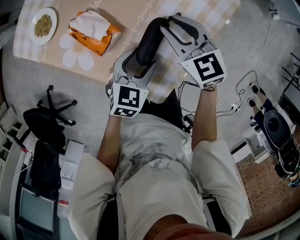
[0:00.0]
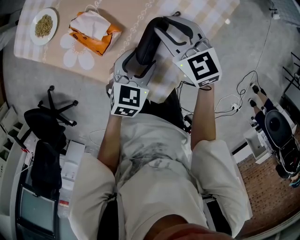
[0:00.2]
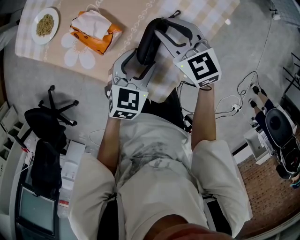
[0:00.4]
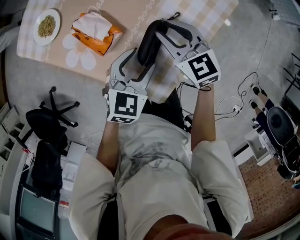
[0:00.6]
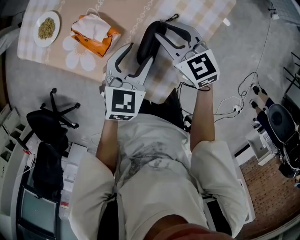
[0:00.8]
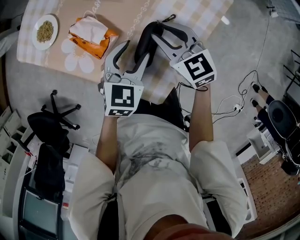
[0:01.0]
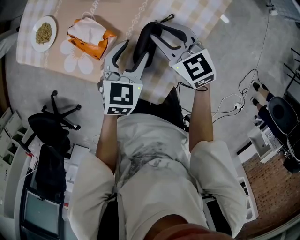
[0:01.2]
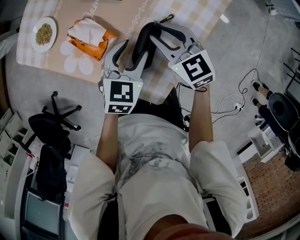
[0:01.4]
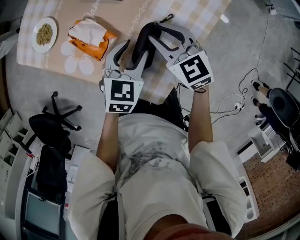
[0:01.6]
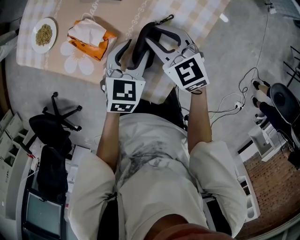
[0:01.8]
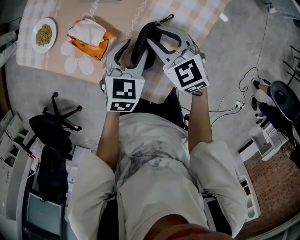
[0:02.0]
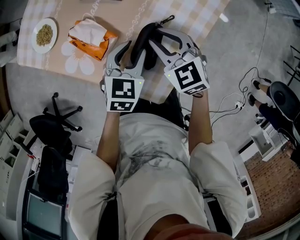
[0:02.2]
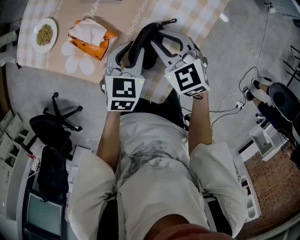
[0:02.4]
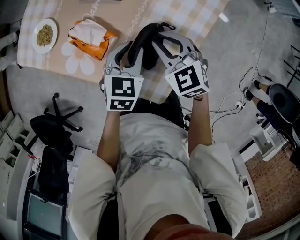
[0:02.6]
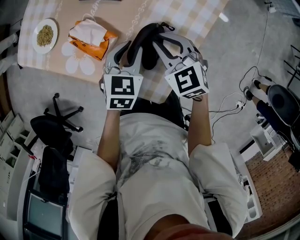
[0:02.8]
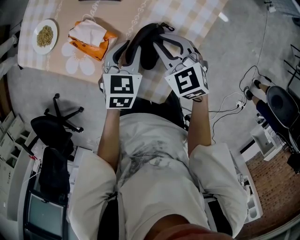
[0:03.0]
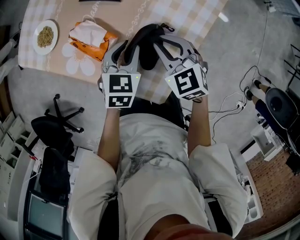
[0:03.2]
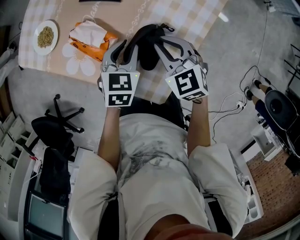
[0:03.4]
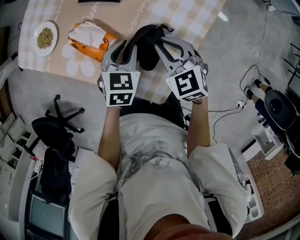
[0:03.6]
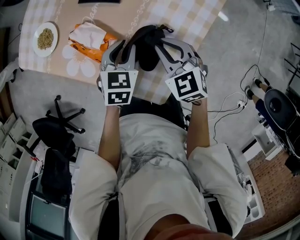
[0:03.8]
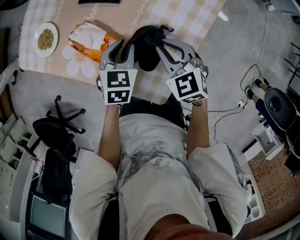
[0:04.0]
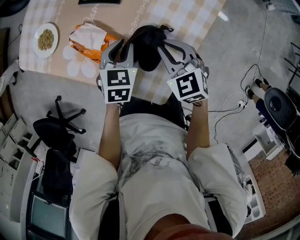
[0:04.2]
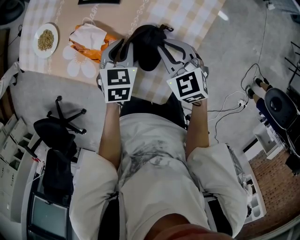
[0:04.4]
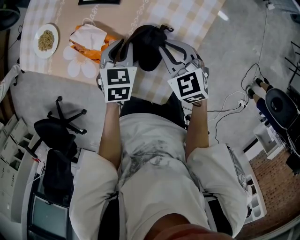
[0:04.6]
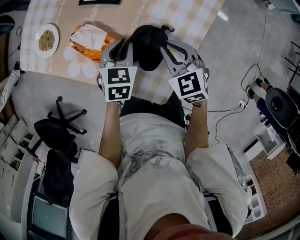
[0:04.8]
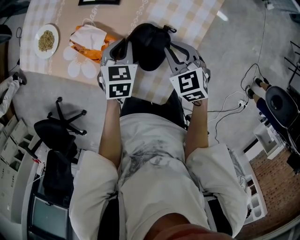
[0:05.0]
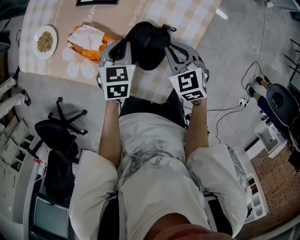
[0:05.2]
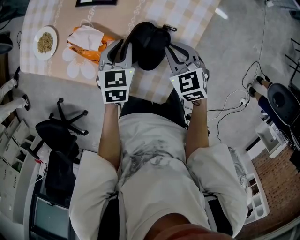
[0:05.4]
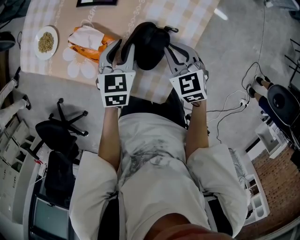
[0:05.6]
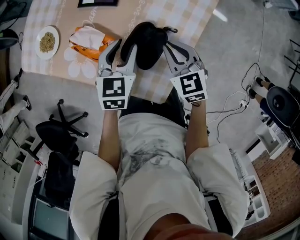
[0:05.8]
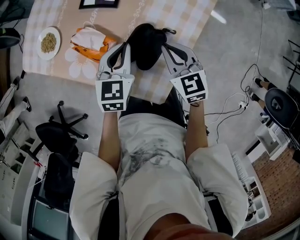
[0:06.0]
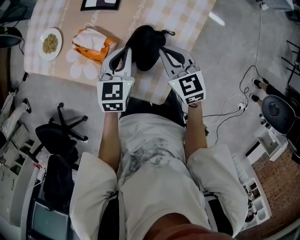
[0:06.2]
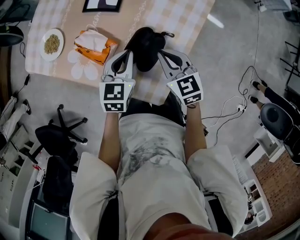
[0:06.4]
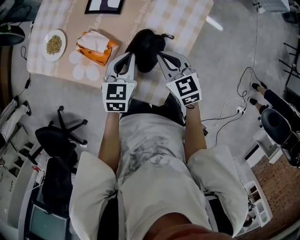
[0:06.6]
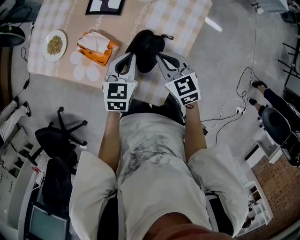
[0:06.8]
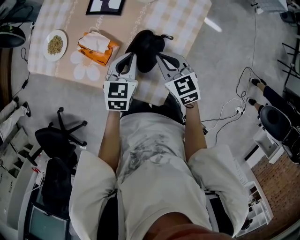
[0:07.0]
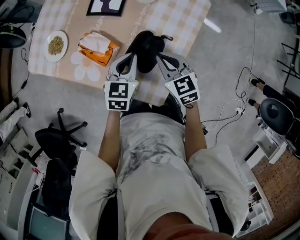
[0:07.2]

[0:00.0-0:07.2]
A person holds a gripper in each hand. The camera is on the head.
0:00.0 to 0:01.4: The left gripper travels forward by about 5 cm.
0:01.4 to 0:02.8: The left gripper closes.
0:02.8 to 0:04.4: The grippers stay close to where they were, moving slightly.
0:04.4 to 0:05.8: The left gripper shifts by approximately 5 cm.
0:05.8 to 0:07.2: The left gripper closes up.

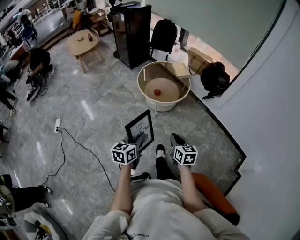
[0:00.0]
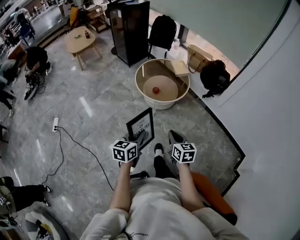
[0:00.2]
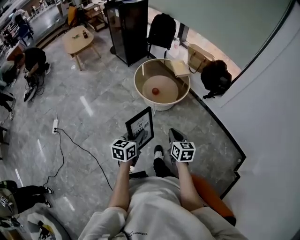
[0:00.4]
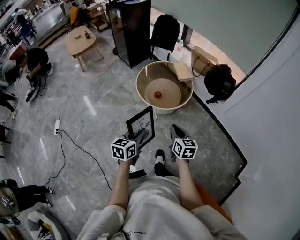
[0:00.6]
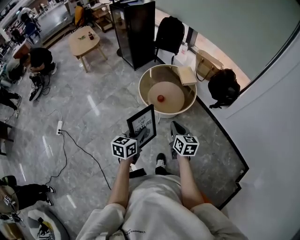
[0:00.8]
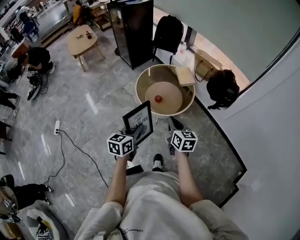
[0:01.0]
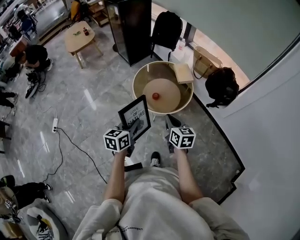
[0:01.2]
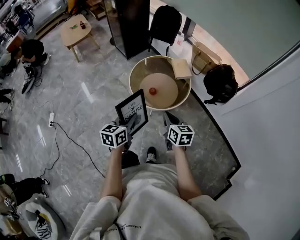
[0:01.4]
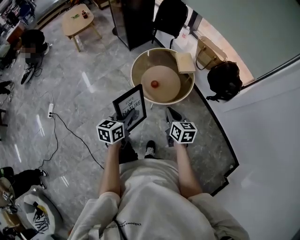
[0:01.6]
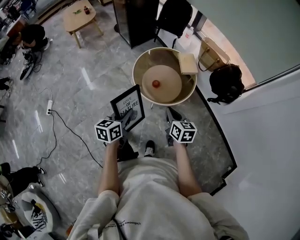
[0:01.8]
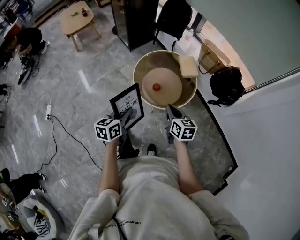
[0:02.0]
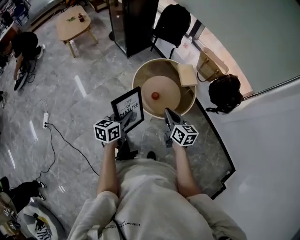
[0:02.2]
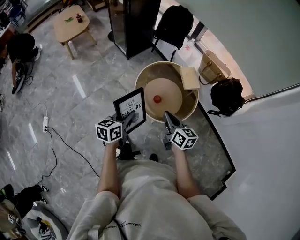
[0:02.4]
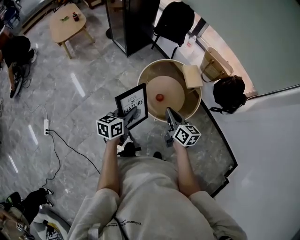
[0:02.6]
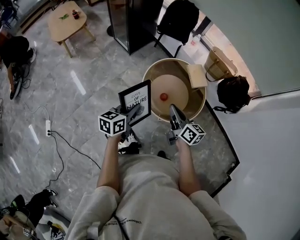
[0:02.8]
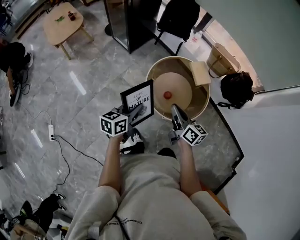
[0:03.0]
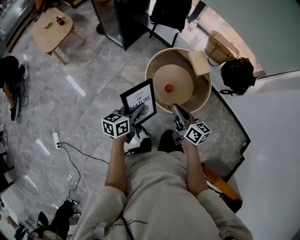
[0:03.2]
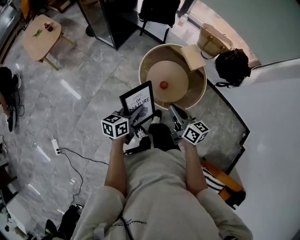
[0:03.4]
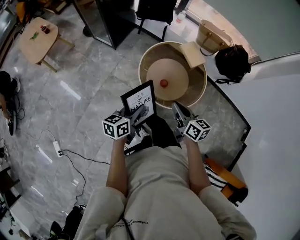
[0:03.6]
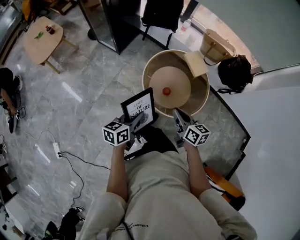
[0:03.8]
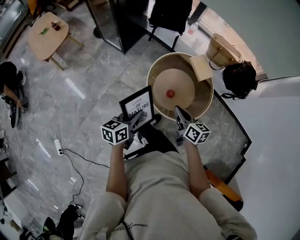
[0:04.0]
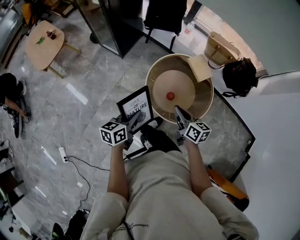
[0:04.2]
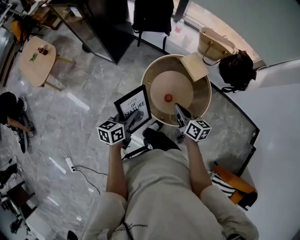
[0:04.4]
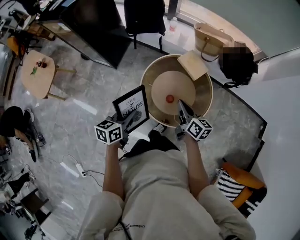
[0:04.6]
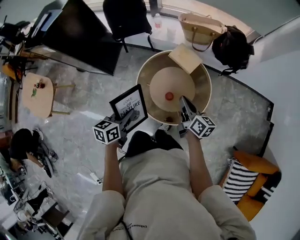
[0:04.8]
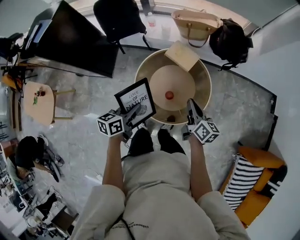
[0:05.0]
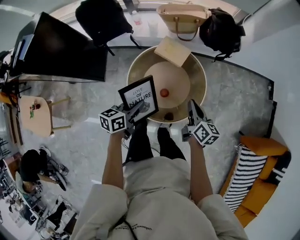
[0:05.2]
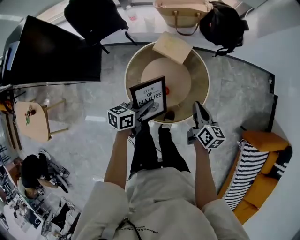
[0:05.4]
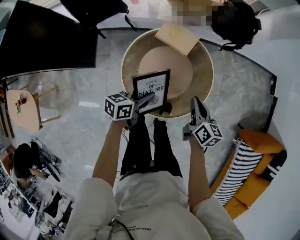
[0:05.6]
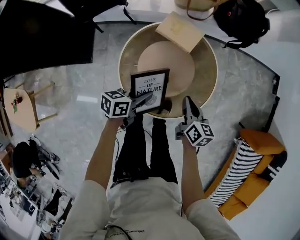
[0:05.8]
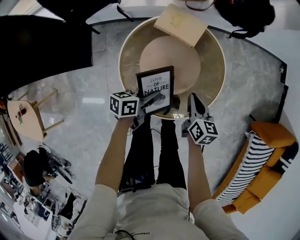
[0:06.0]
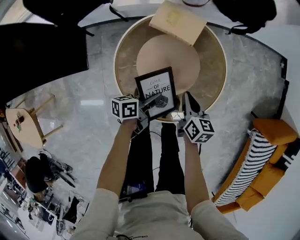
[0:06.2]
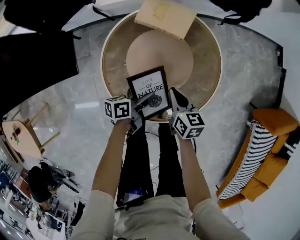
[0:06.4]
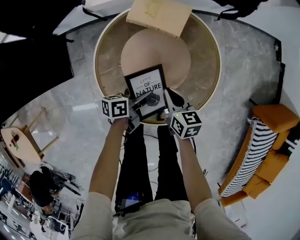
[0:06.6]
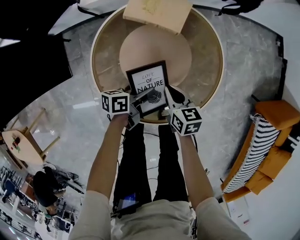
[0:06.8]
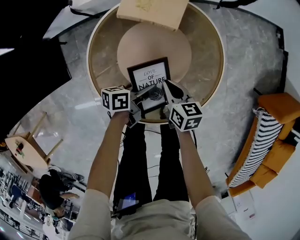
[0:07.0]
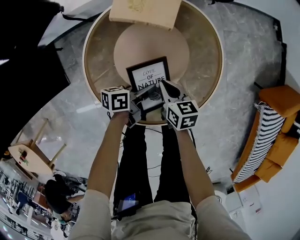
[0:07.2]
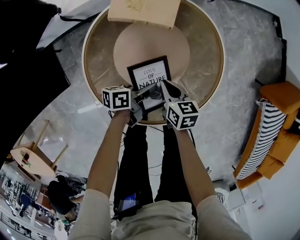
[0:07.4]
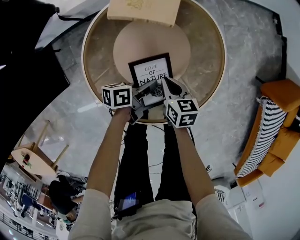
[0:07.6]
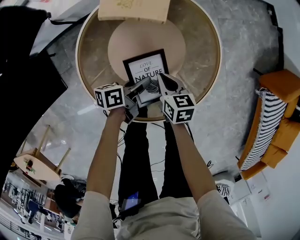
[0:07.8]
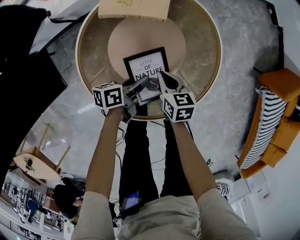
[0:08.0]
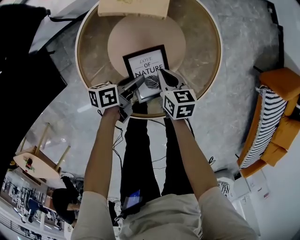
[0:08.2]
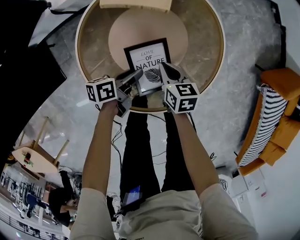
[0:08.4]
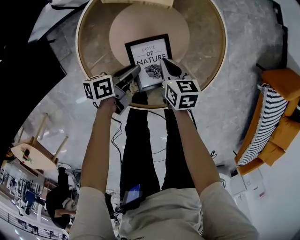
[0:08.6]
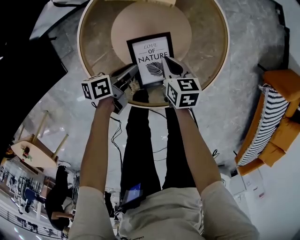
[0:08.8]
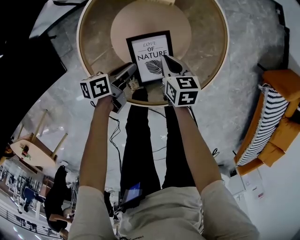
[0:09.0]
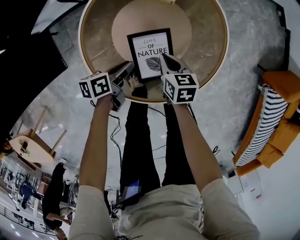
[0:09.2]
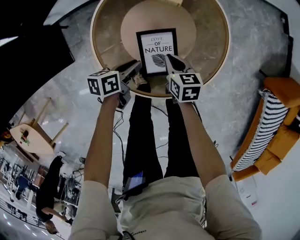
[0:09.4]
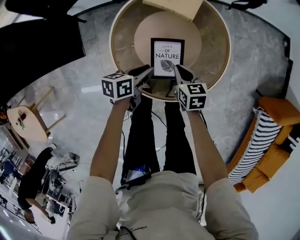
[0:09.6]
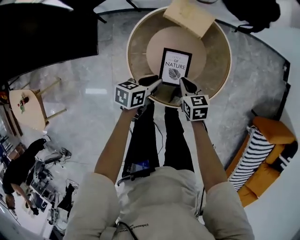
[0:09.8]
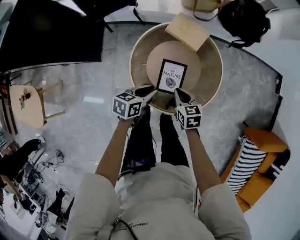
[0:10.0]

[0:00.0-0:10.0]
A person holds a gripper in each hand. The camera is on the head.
0:00.0 to 0:01.4: The two grippers go approximately 35 cm forward.
0:01.4 to 0:02.8: The two grippers go approximately 35 cm forward and to the left. The right gripper changes its angle by some 20 degrees.
0:02.8 to 0:04.2: The right gripper goes roughly 15 cm forward, downward and to the left. Meanwhile the left gripper moves forward, to the left and downward, approximately 15 cm.
0:04.2 to 0:05.8: The left gripper ends up approximately 35 cm from where it was, and rotates some 50 degrees. The right gripper shifts by some 30 cm, and swivels some 50 degrees.
0:05.8 to 0:07.2: Both grippers travel together downward, some 20 cm. The left gripper swivels about 20 degrees.
0:07.2 to 0:08.6: The left gripper moves to the left, roughly 5 cm.
0:08.6 to 0:10.0: The two grippers go about 25 cm upward. The left gripper swivels approximately 30 degrees. Meanwhile the right gripper swivels roughly 30 degrees.

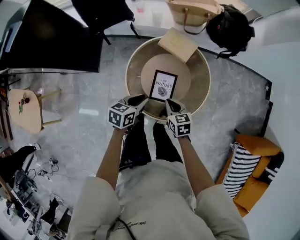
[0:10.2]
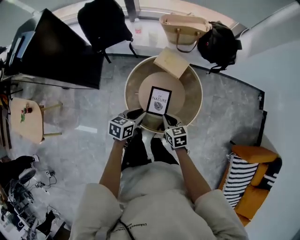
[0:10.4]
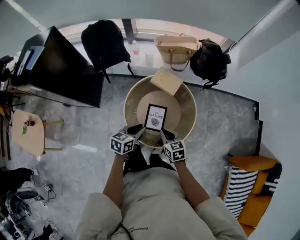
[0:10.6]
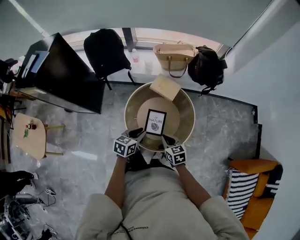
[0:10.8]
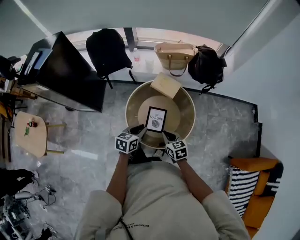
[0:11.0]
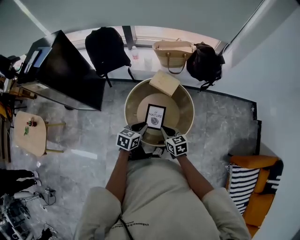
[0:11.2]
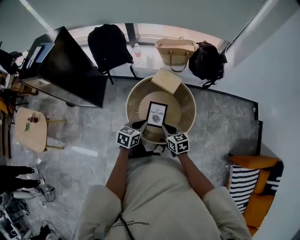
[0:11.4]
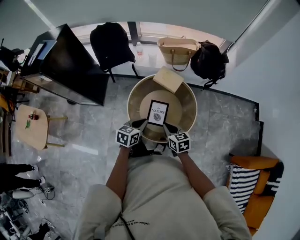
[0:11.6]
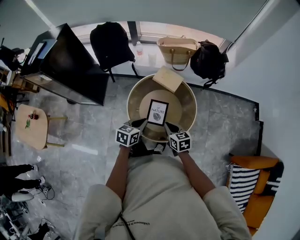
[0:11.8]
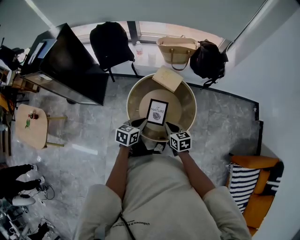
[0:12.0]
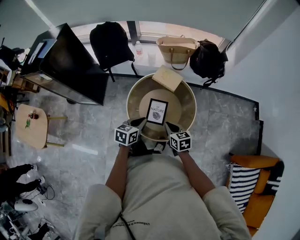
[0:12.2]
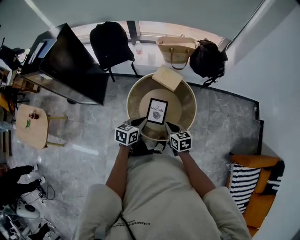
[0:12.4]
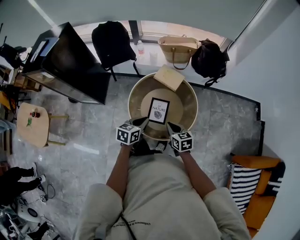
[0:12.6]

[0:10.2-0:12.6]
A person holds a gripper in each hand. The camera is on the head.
0:10.2 to 0:11.4: The left gripper is displaced upward by approximately 10 cm. The right gripper shifts roughly 15 cm upward and backward.
0:11.4 to 0:12.6: The grippers move only a little.

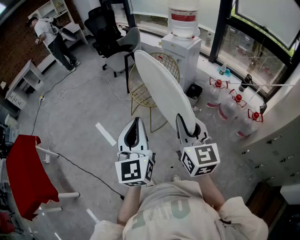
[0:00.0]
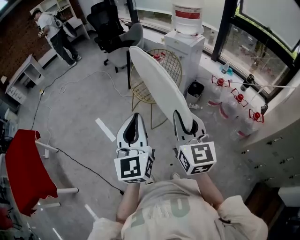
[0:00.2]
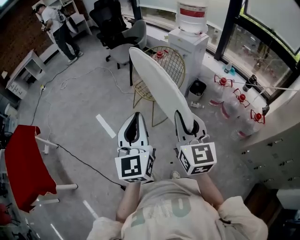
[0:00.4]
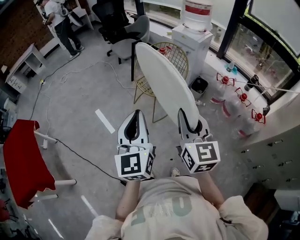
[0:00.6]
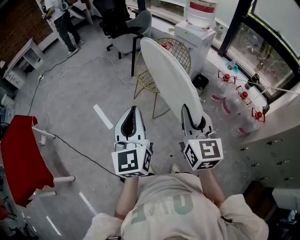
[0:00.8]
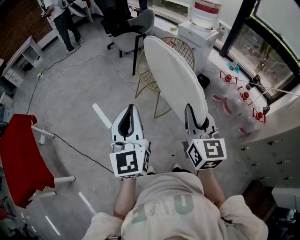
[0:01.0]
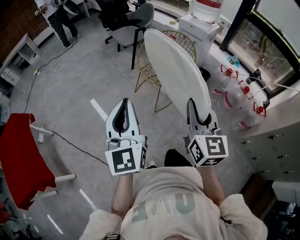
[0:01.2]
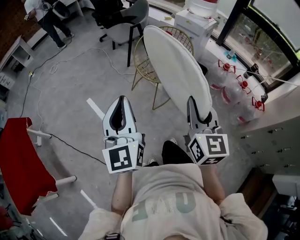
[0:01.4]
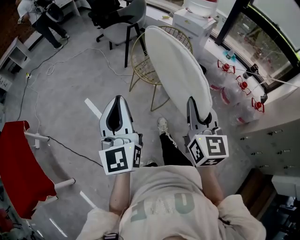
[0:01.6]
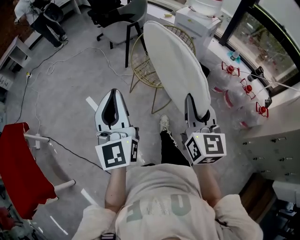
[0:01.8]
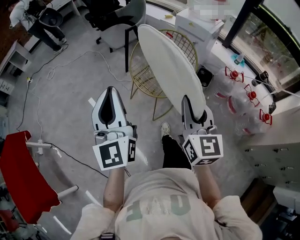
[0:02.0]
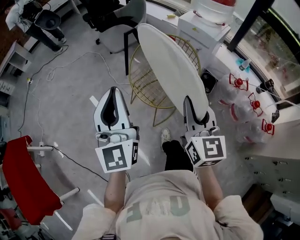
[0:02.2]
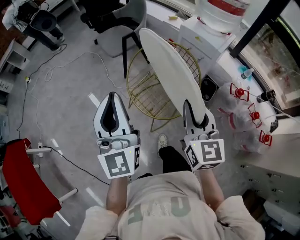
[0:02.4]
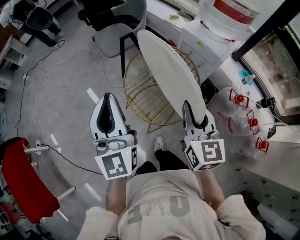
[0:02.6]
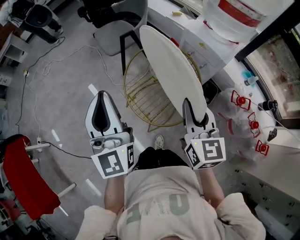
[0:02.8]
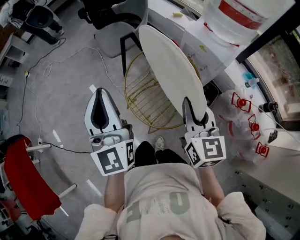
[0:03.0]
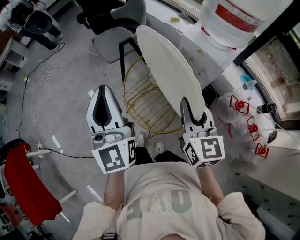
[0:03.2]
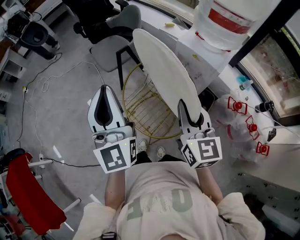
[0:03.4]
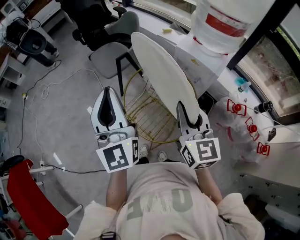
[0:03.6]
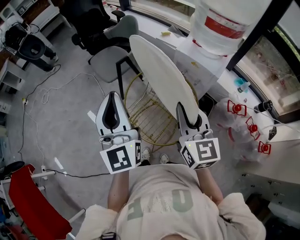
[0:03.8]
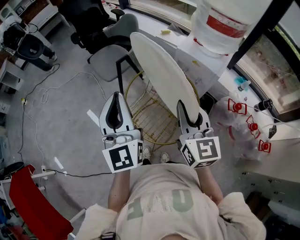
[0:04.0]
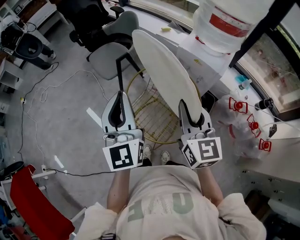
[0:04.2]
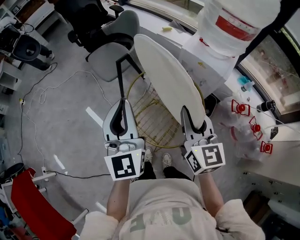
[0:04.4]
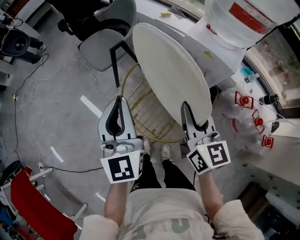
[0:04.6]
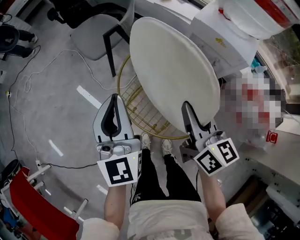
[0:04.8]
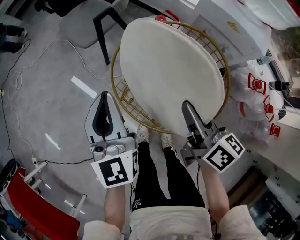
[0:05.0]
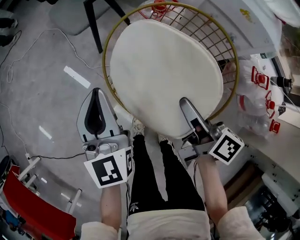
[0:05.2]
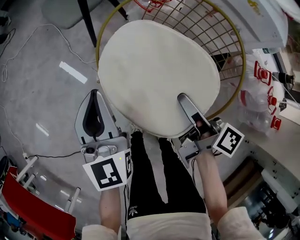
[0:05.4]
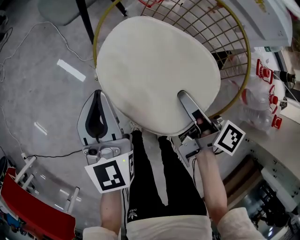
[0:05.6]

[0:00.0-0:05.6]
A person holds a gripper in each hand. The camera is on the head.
0:00.0 to 0:01.4: The right gripper goes about 10 cm to the left. Meanwhile the left gripper shifts approximately 20 cm to the left.
0:01.4 to 0:02.8: The two grippers travel together, forward, roughly 50 cm.
0:02.8 to 0:04.2: Both grippers move forward, some 10 cm.
0:04.2 to 0:05.6: Both grippers travel together downward, approximately 35 cm. The left gripper swivels about 20 degrees; the right gripper rotates around the line of its fingers by some 70 degrees, clockwise from behind.
